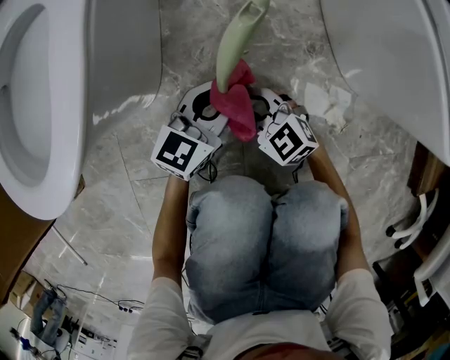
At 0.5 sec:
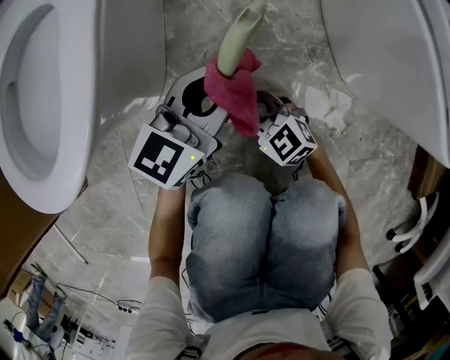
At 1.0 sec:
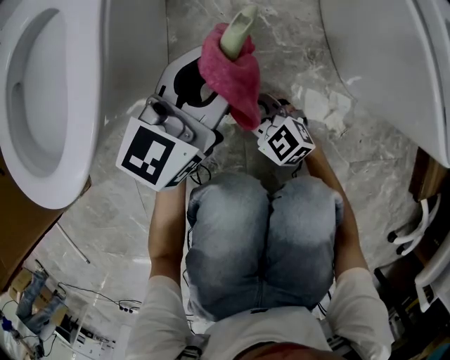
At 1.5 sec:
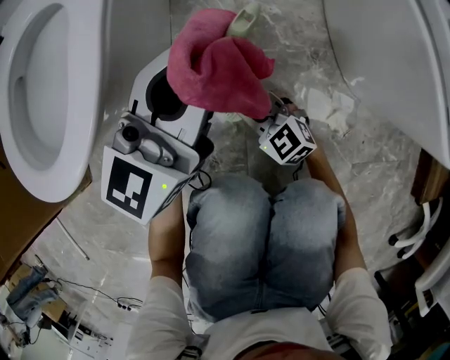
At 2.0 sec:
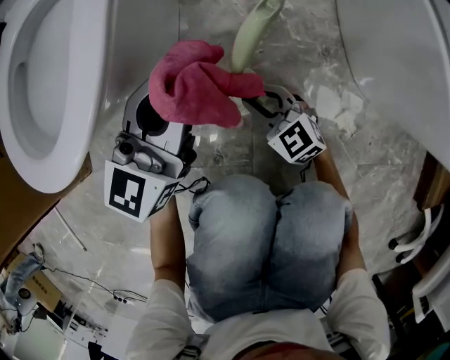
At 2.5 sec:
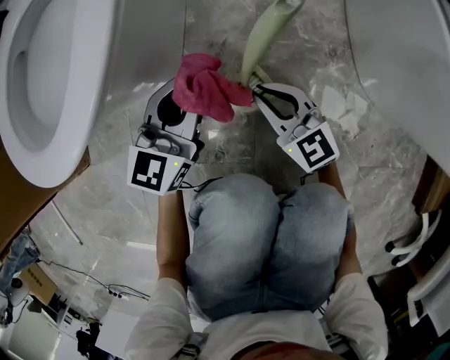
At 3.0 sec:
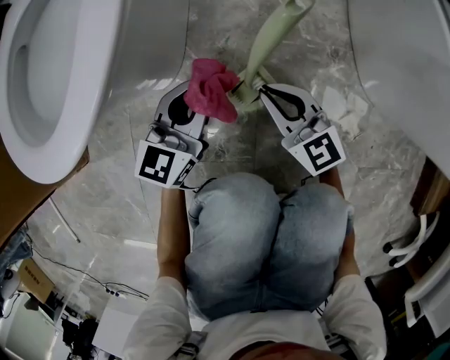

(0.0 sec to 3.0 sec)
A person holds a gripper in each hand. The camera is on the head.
0.0 sec - 1.5 sec: The left gripper is displaced upward by roughly 20 cm, and rotates roughly 20 degrees.
1.5 sec - 3.0 sec: The right gripper is displaced upward by some 5 cm, and rotates some 20 degrees; the left gripper heads downward, covering about 20 cm.

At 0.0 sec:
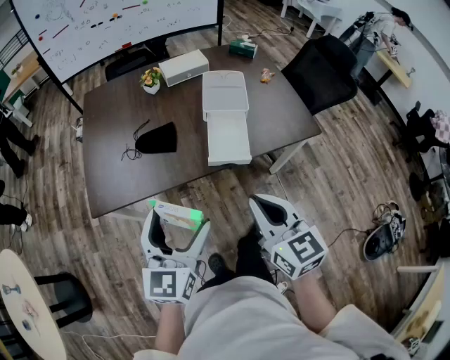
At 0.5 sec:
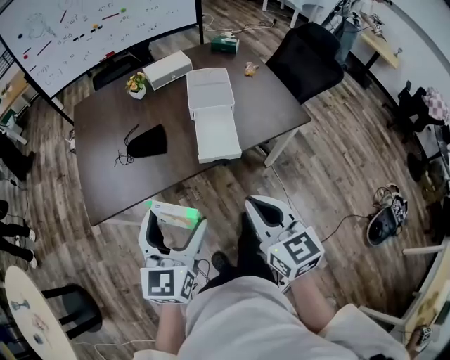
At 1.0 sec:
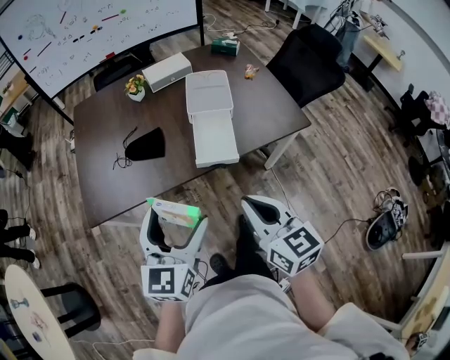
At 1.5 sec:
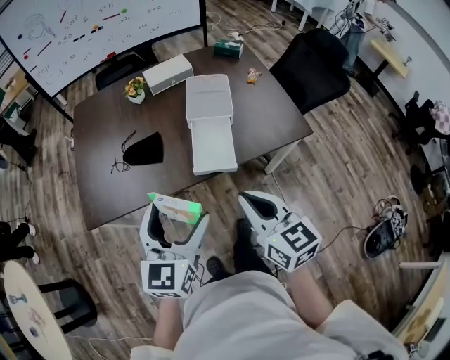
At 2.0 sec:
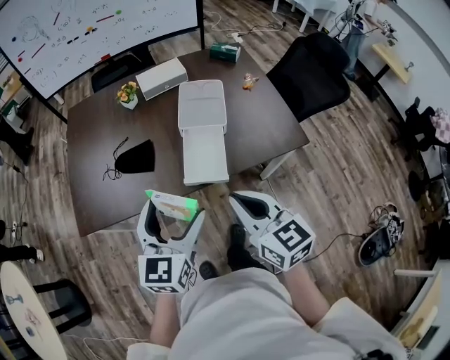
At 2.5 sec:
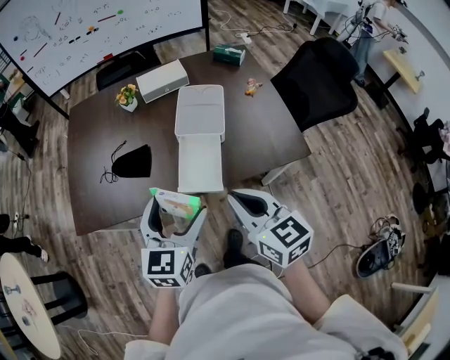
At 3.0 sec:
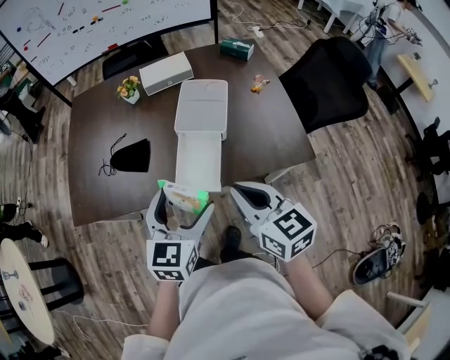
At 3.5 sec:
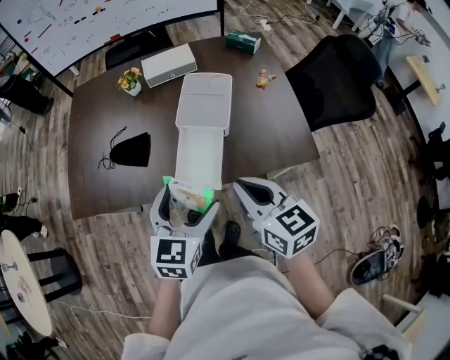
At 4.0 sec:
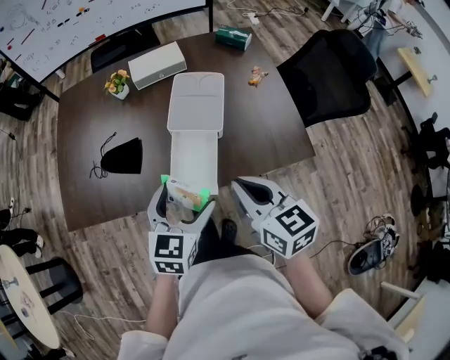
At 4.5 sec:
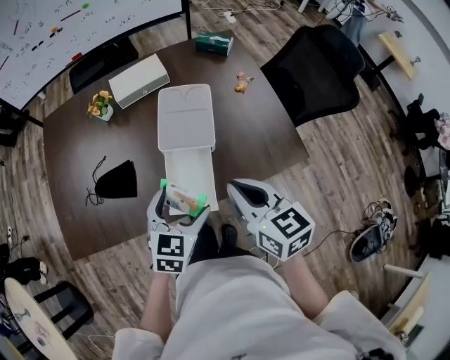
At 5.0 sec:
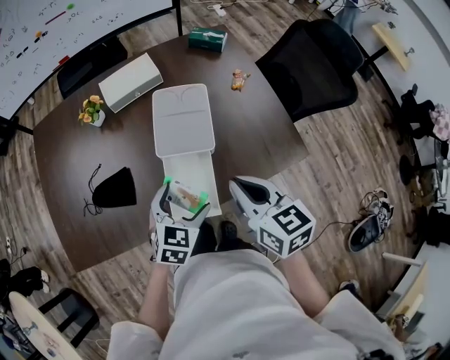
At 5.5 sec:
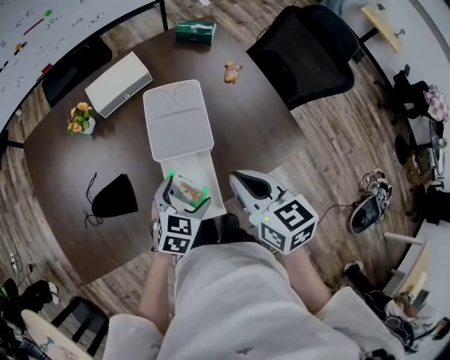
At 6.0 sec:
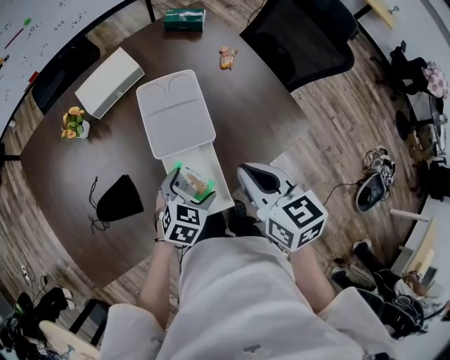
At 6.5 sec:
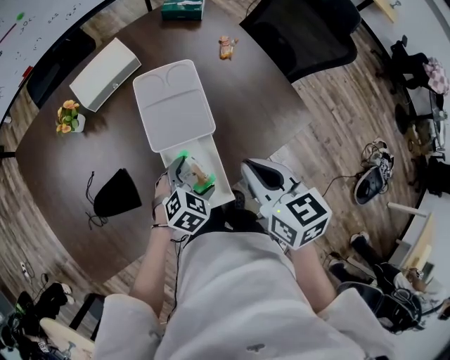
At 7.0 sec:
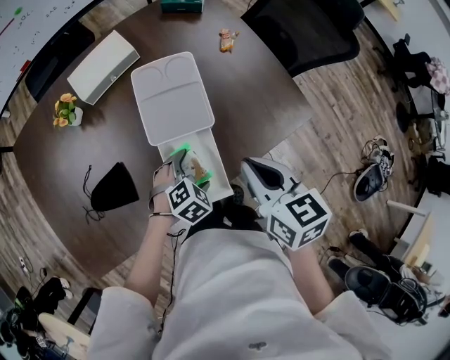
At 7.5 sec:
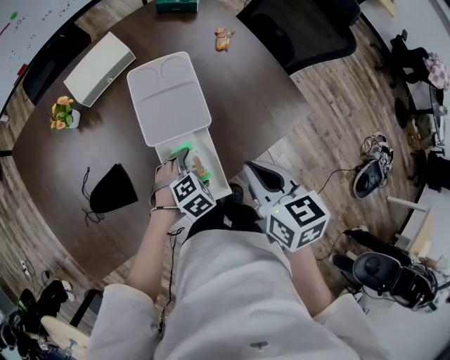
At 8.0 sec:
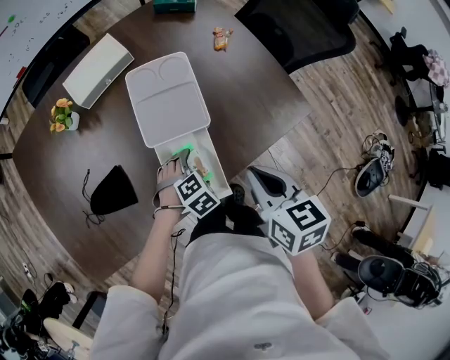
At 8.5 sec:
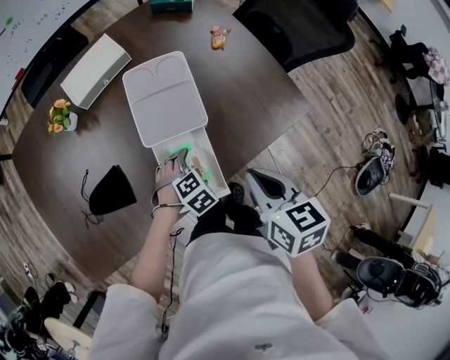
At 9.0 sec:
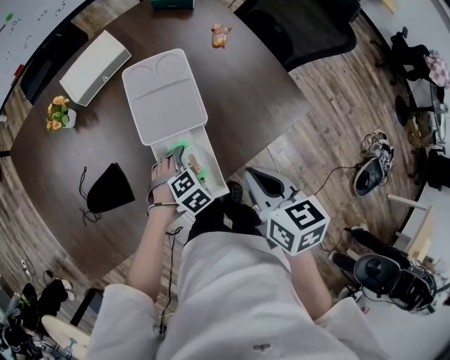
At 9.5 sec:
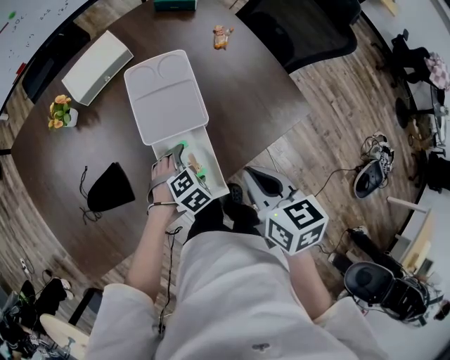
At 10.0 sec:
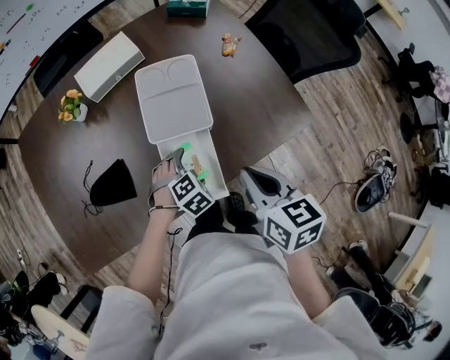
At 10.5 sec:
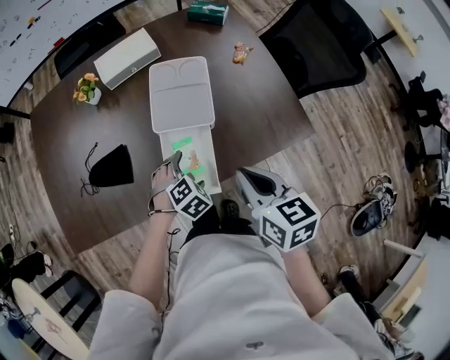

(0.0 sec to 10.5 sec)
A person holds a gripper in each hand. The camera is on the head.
0.0 sec - 2.0 sec: The left gripper shifts approximately 15 cm to the right and forward, while the right gripper travels forward and to the right by roughly 10 cm.
2.0 sec - 4.0 sec: The left gripper moves to the right, forward and downward, some 15 cm. Meanwhile the right gripper moves forward and to the right, roughly 15 cm.
4.0 sec - 6.5 sec: The left gripper shifts approximately 20 cm downward, and turns by some 50 degrees; the right gripper shifts by about 10 cm, and swivels approximately 30 degrees.
6.5 sec - 8.5 sec: The left gripper heads downward, covering some 5 cm, and swivels about 20 degrees, while the right gripper moves roughly 5 cm.
8.5 sec - 10.5 sec: There are only small adjustments of the grippers.

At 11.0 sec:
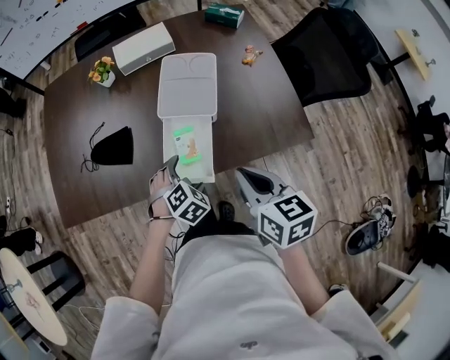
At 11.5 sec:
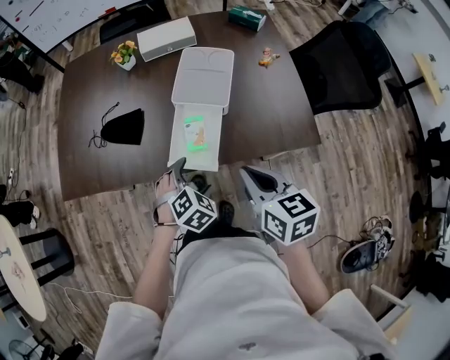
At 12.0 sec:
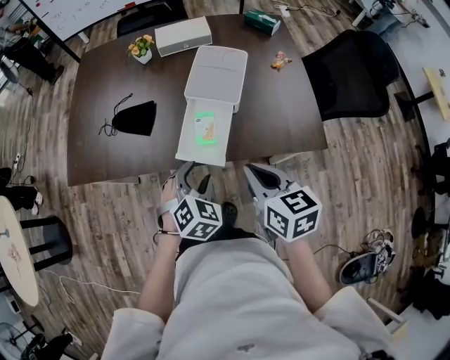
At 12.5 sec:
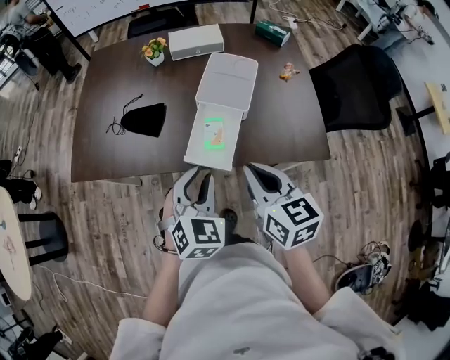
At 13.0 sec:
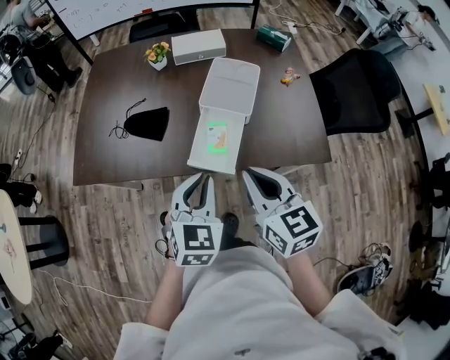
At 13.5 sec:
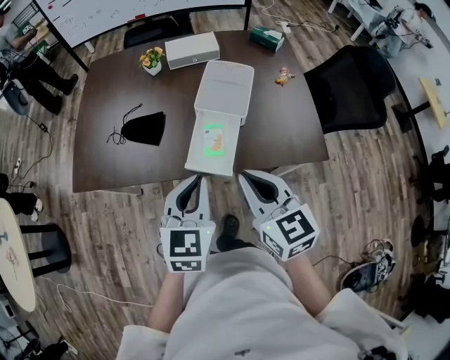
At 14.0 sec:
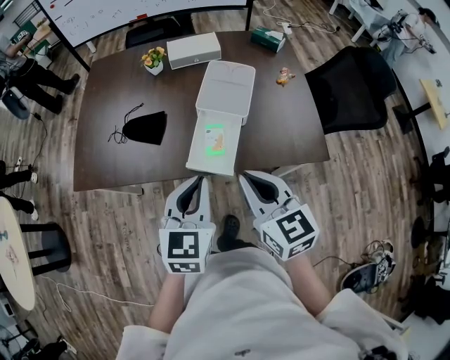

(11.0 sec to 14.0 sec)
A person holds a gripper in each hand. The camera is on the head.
11.0 sec - 12.5 sec: The left gripper heads upward and backward, covering approximately 20 cm, rotates approximately 40 degrees, and closes up. The right gripper shifts by approximately 5 cm.
12.5 sec - 14.0 sec: The left gripper goes about 5 cm upward, and changes its angle by about 30 degrees.

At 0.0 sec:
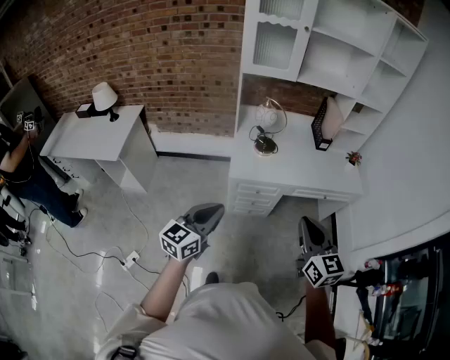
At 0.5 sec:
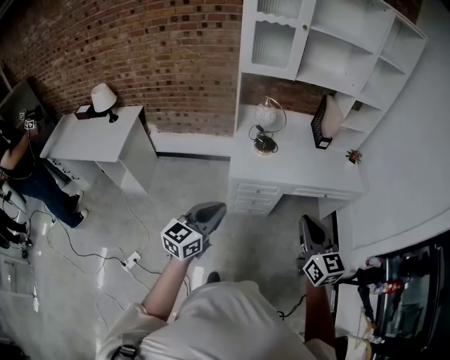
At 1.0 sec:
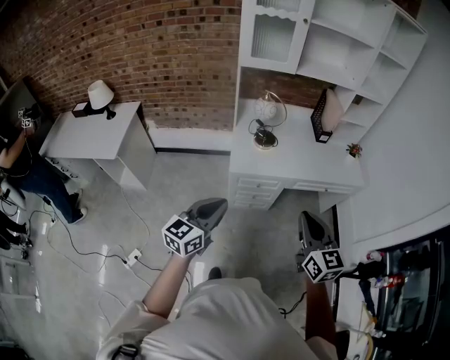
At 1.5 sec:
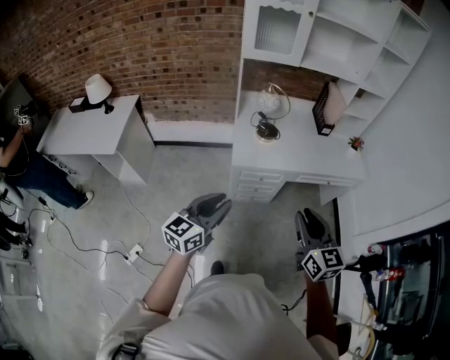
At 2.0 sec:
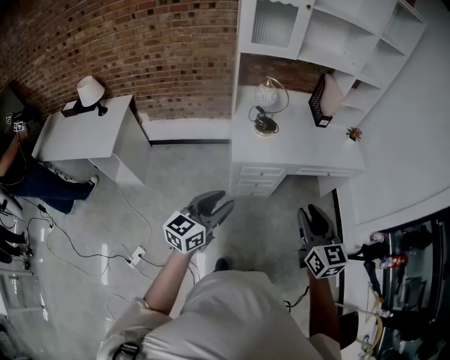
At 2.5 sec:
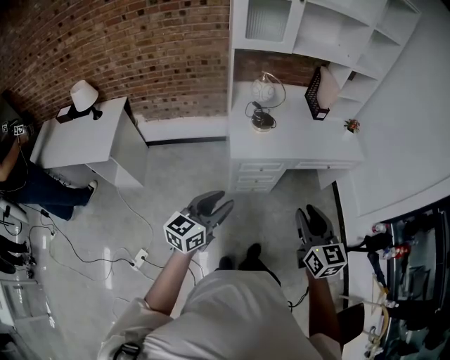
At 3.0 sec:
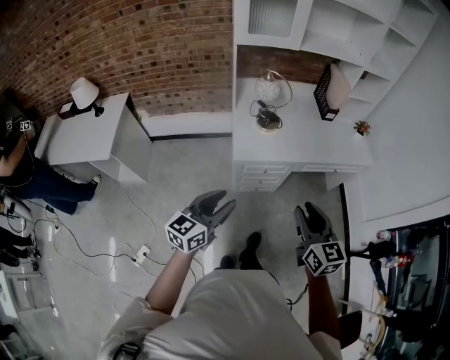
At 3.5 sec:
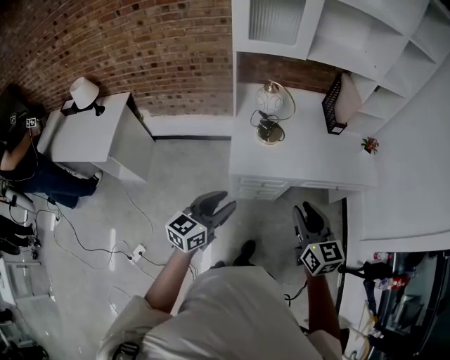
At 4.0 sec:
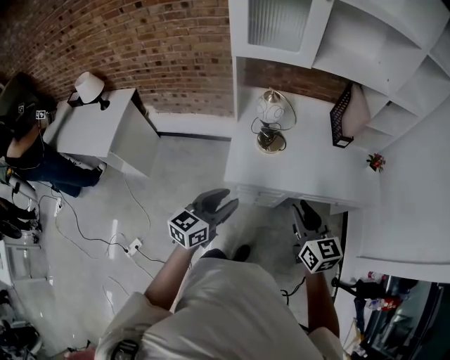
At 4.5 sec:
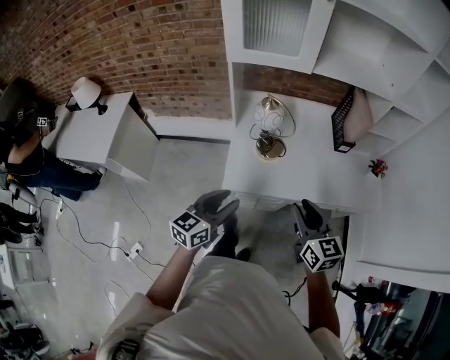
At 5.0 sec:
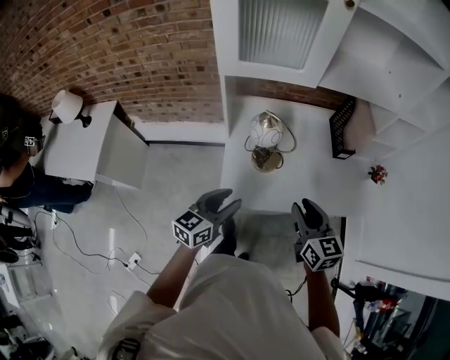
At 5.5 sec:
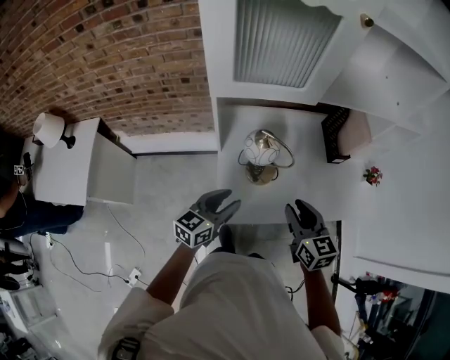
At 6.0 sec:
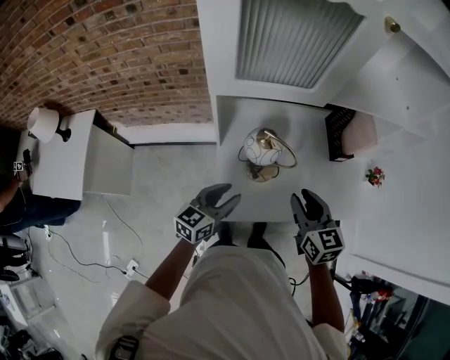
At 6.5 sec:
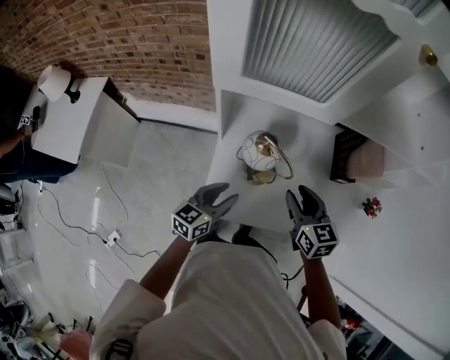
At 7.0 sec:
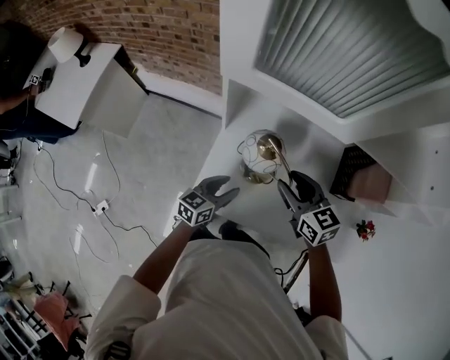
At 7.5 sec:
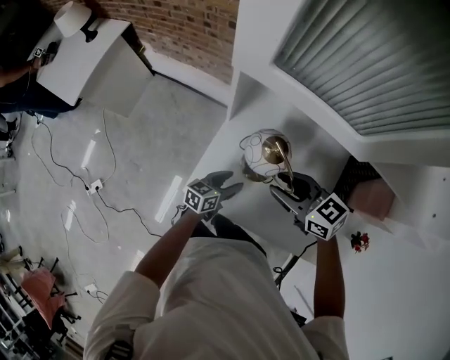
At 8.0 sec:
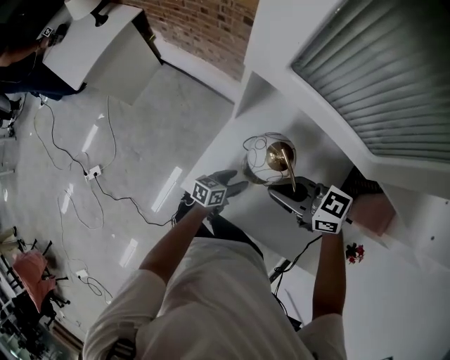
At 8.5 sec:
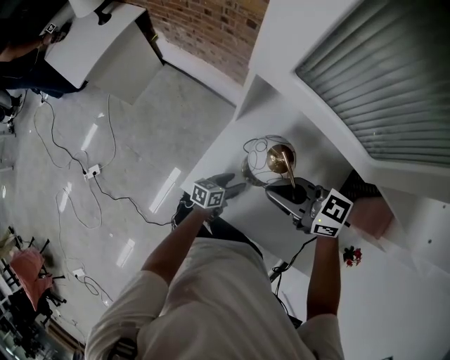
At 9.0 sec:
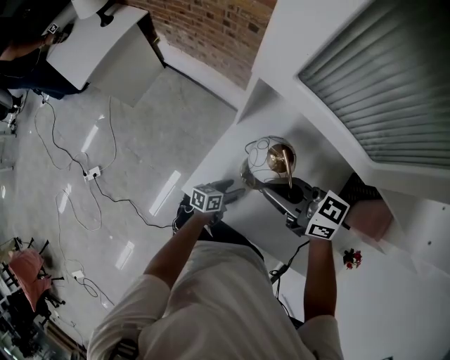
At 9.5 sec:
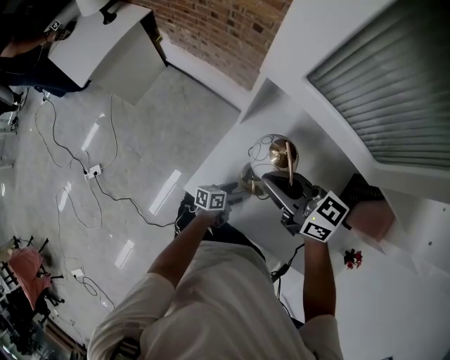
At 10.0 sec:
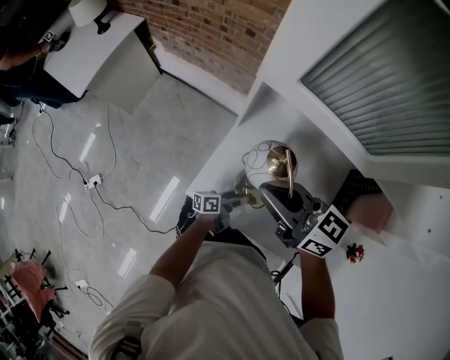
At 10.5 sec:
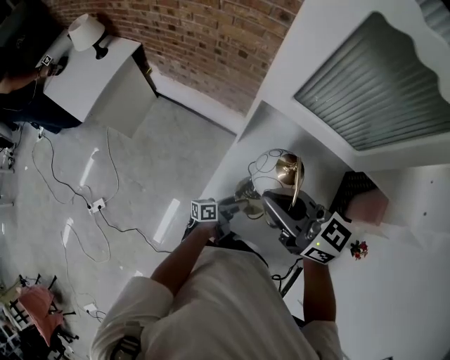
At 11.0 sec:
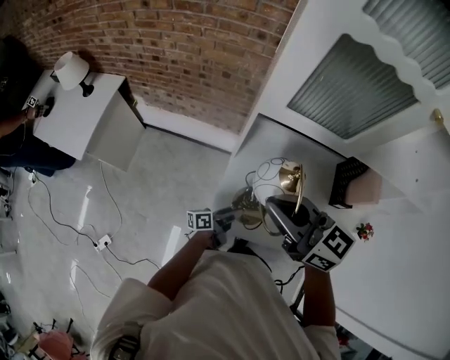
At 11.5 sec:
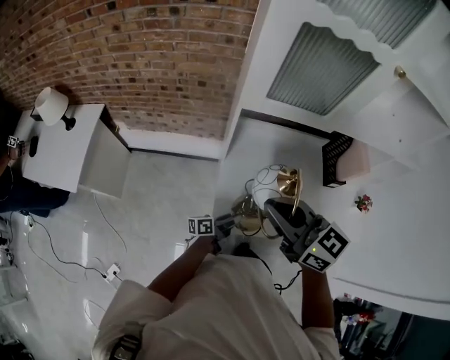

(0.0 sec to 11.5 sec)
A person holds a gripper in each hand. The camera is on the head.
0.0 sec - 2.0 sec: The right gripper shifts about 5 cm to the left, and opens its fingers. The left gripper changes place by some 5 cm, and opens up.
2.0 sec - 4.0 sec: Both grippers travel together forward, some 25 cm.
4.0 sec - 6.0 sec: Both grippers travel together forward, about 30 cm.
6.0 sec - 7.5 sec: The left gripper moves downward, some 20 cm, and rotates roughly 30 degrees. Meanwhile the right gripper changes place by about 15 cm, and turns by approximately 60 degrees.
7.5 sec - 9.5 sec: The left gripper goes approximately 10 cm downward, and turns by about 30 degrees; the right gripper ends up roughly 10 cm from where it was, and closes up.
9.5 sec - 11.5 sec: The two grippers go approximately 15 cm upward. The left gripper swivels roughly 30 degrees, and closes its fingers, while the right gripper rotates some 40 degrees.
